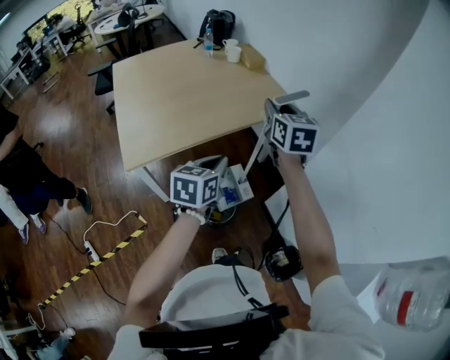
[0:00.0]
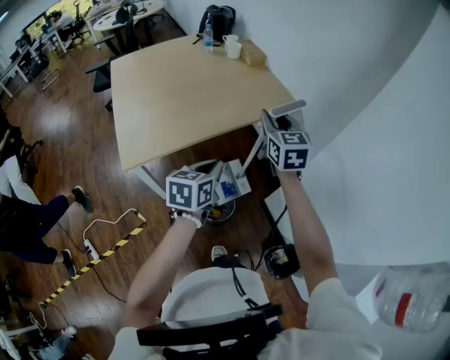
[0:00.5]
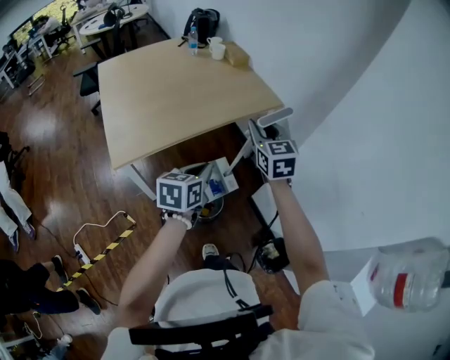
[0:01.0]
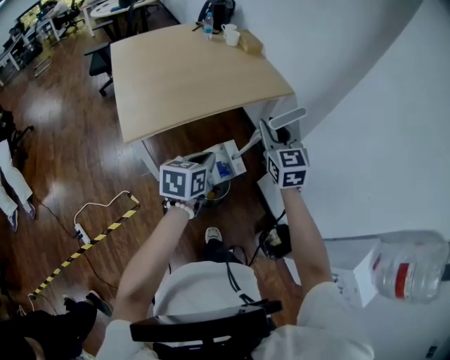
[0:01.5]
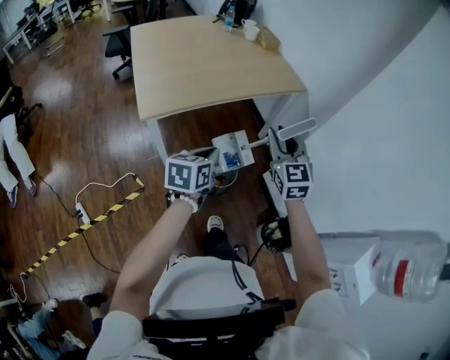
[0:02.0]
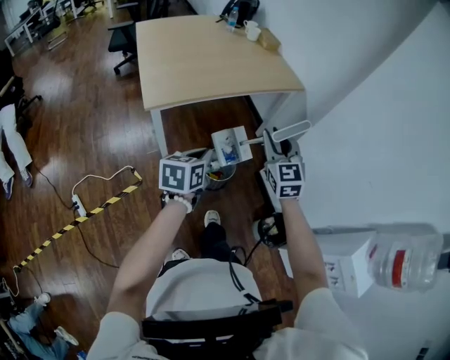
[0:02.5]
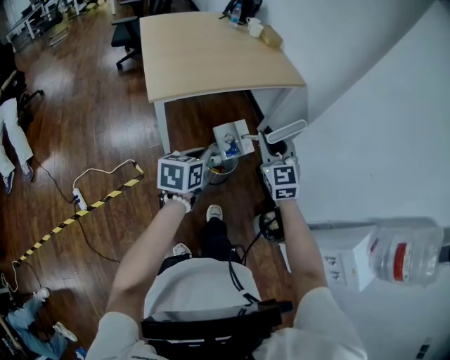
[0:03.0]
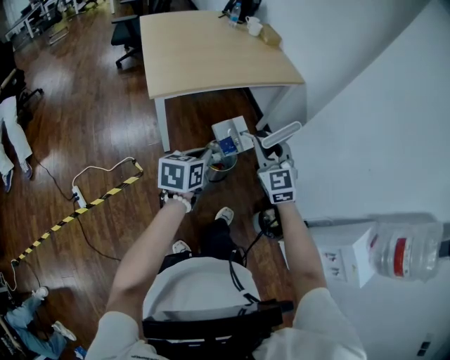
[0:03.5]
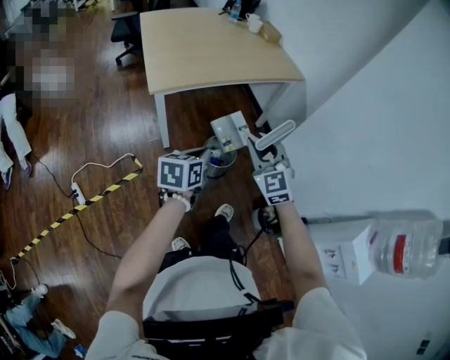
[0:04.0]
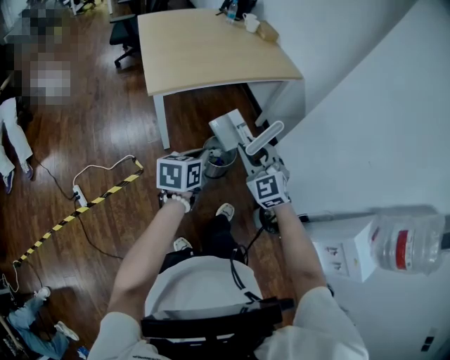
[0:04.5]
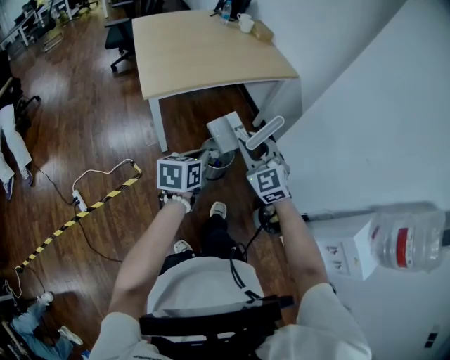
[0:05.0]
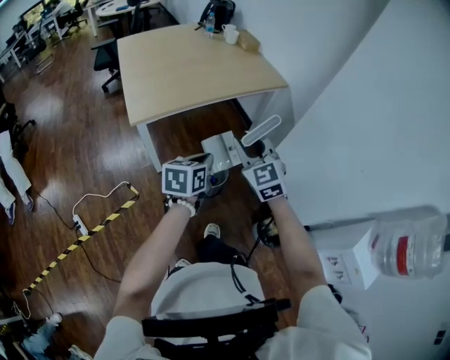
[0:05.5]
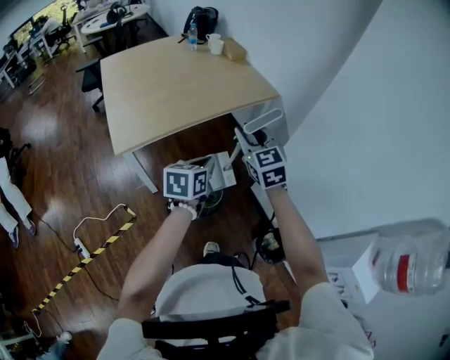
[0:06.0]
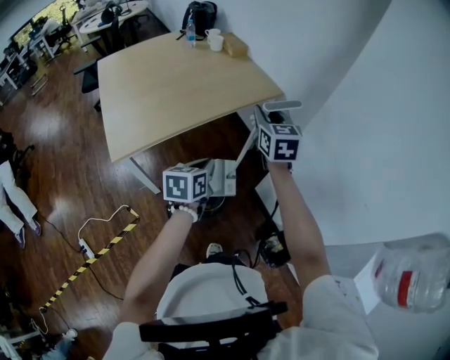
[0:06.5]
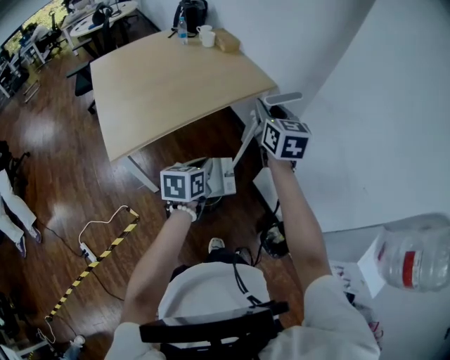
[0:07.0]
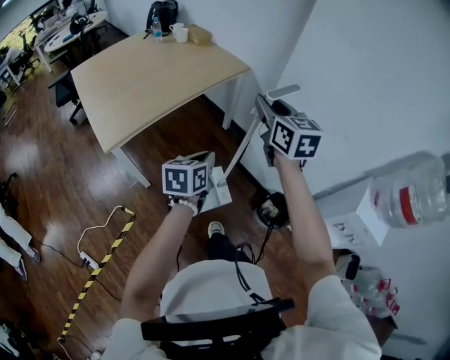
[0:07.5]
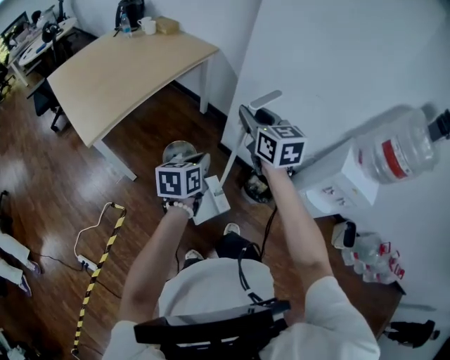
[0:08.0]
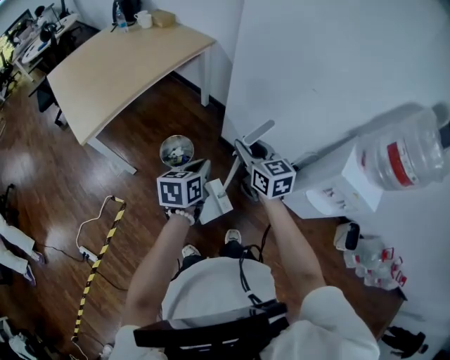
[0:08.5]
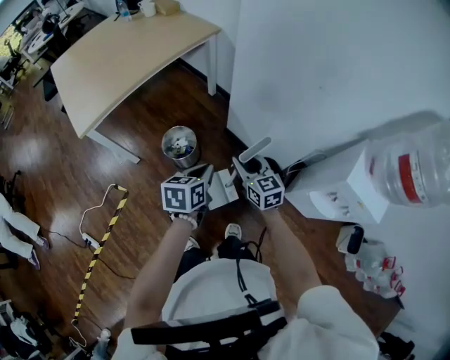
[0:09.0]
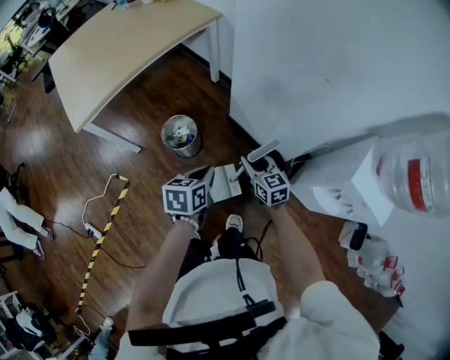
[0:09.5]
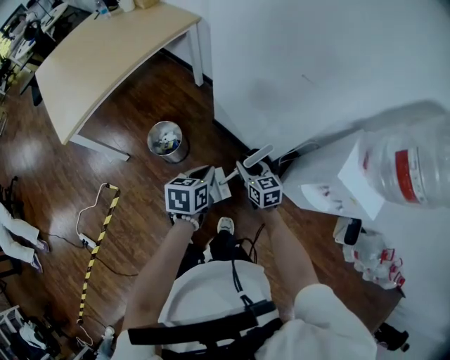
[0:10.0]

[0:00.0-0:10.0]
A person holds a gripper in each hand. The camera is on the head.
0:00.0 to 0:02.0: The left gripper goes about 20 cm backward and to the left; the right gripper goes about 25 cm backward, and rotates roughly 20 degrees.
0:02.0 to 0:04.0: The grippers both shift backward by roughly 15 cm.
0:04.0 to 0:06.0: The left gripper is displaced forward and to the right by approximately 25 cm, while the right gripper moves forward, about 25 cm.
0:06.0 to 0:08.0: The two grippers go roughly 25 cm backward and to the right. The right gripper changes its angle by about 30 degrees.
0:08.0 to 0:10.0: The right gripper shifts some 40 cm downward and to the right; the left gripper travels to the right and downward by some 25 cm.

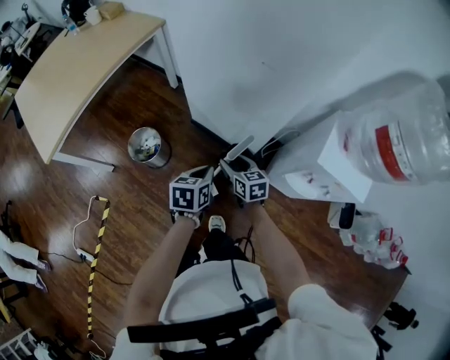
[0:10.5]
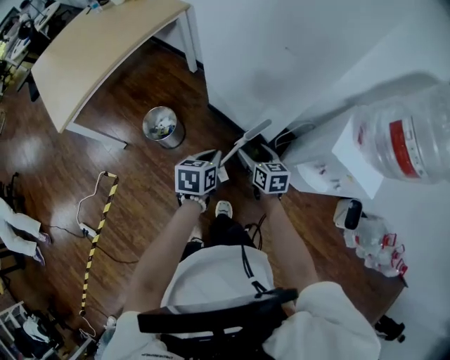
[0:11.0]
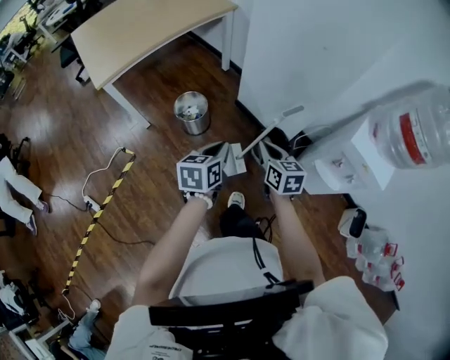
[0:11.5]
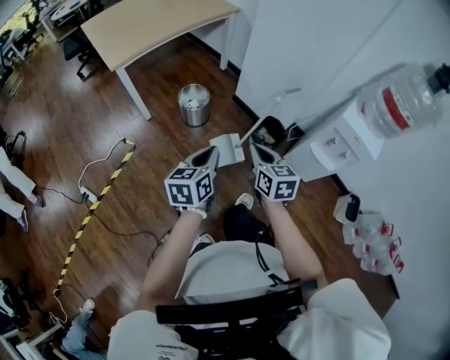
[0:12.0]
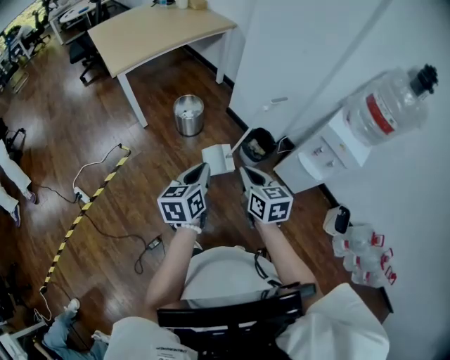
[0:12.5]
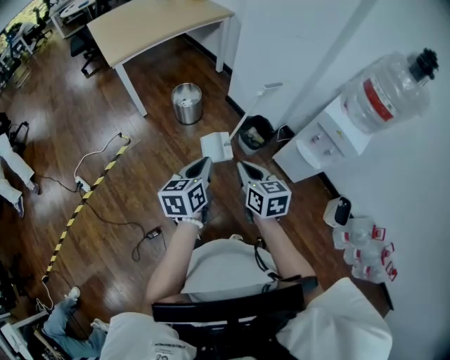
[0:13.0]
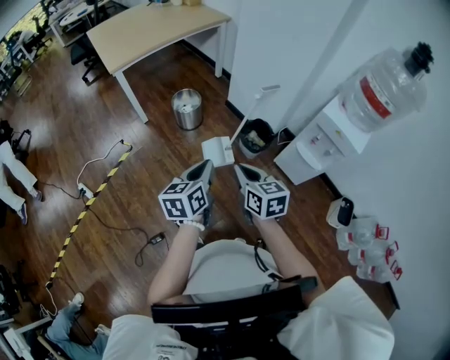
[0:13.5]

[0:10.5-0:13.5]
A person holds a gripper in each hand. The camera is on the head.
0:10.5 to 0:12.0: The left gripper shifts approximately 40 cm backward and to the left, and turns by about 30 degrees. Meanwhile the right gripper moves backward, upward and to the left, roughly 40 cm, and closes.
0:12.0 to 0:13.5: Both grippers travel together backward and to the right, approximately 15 cm.

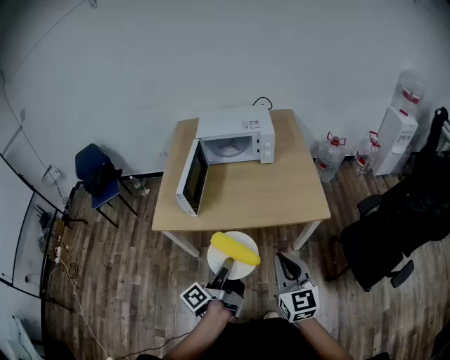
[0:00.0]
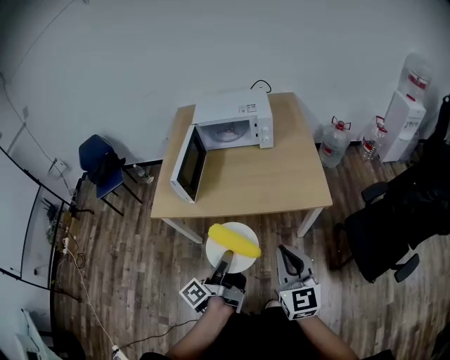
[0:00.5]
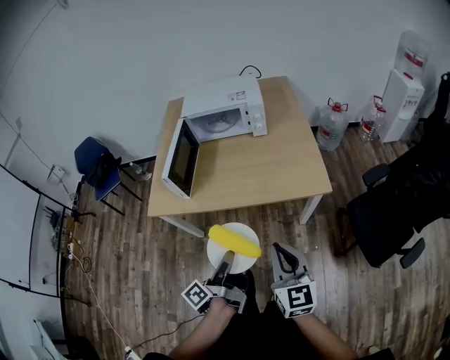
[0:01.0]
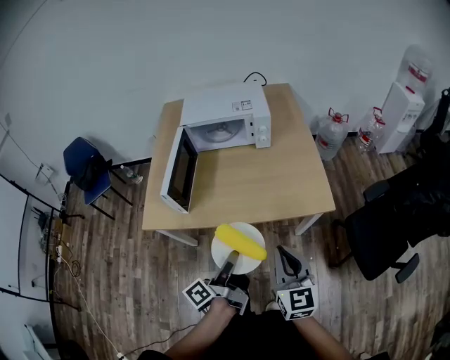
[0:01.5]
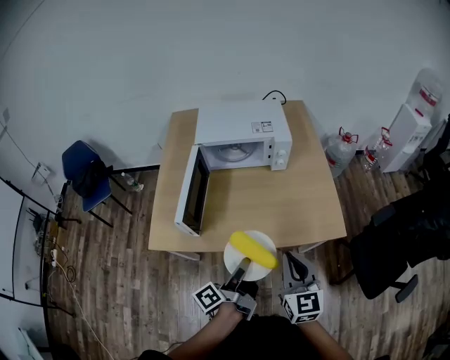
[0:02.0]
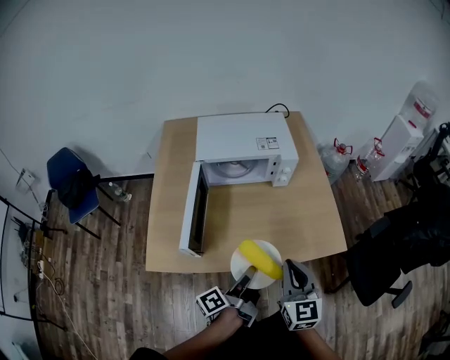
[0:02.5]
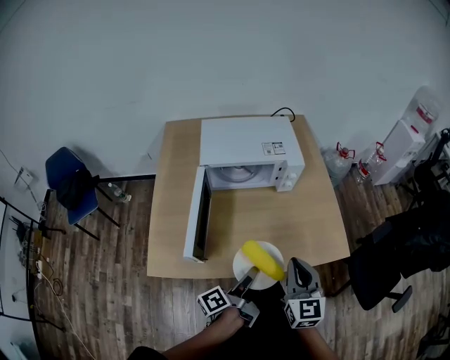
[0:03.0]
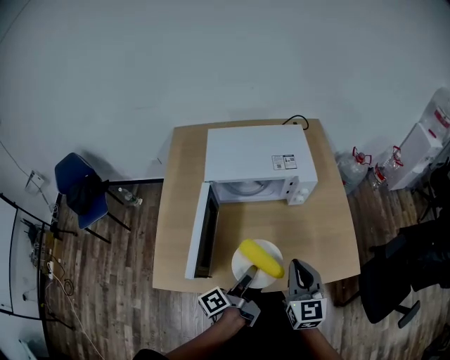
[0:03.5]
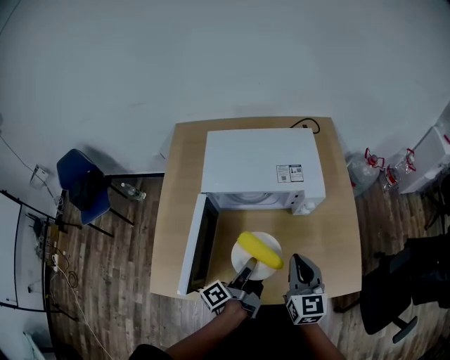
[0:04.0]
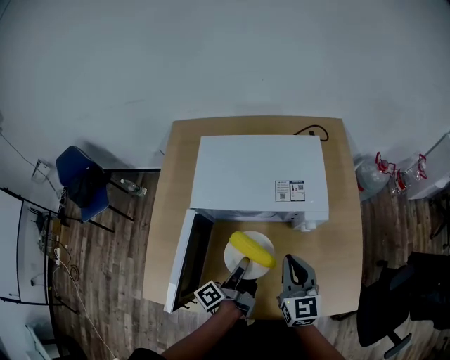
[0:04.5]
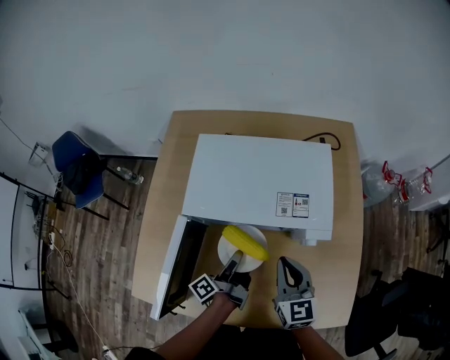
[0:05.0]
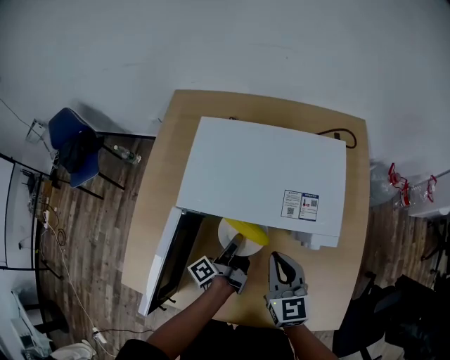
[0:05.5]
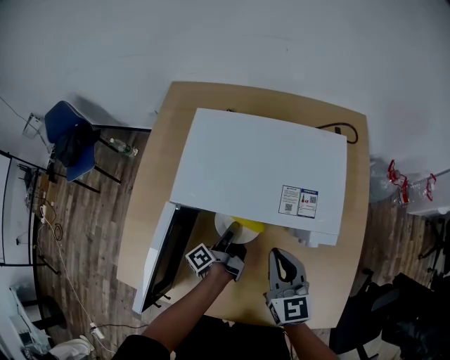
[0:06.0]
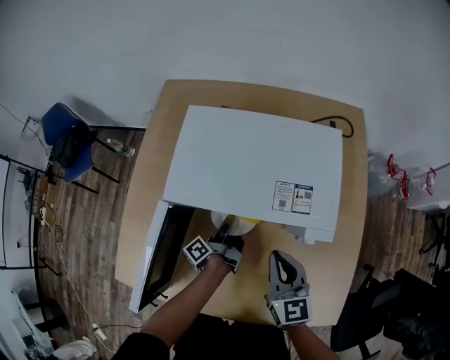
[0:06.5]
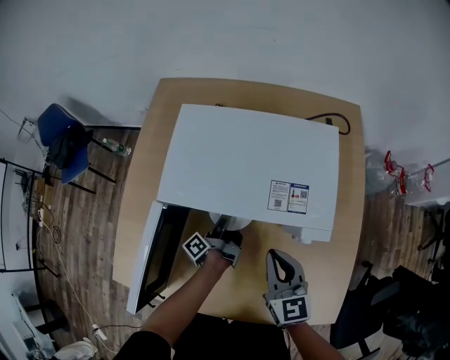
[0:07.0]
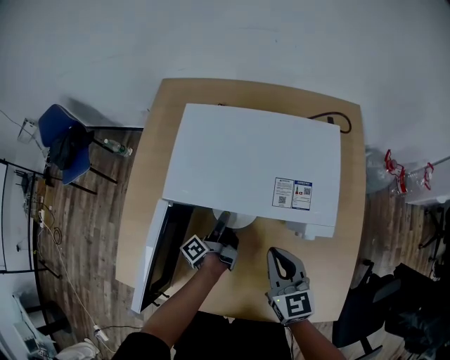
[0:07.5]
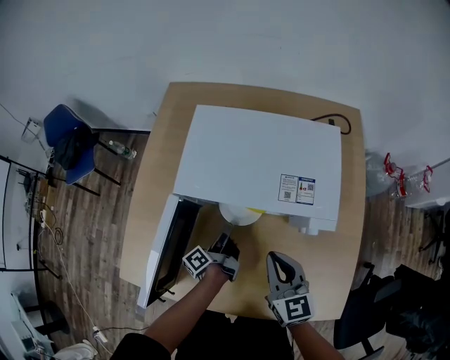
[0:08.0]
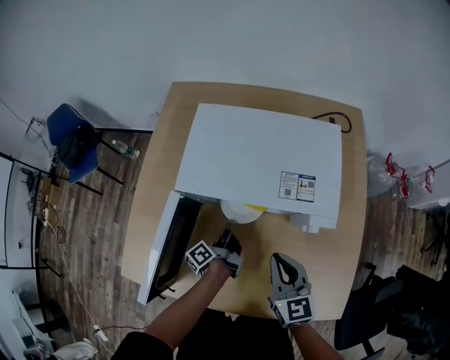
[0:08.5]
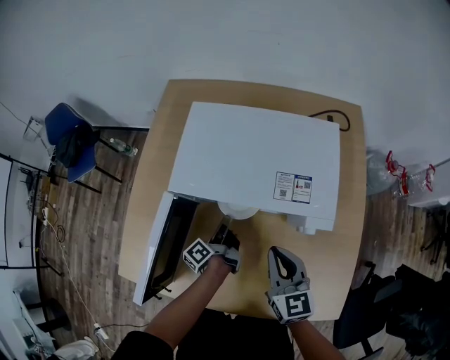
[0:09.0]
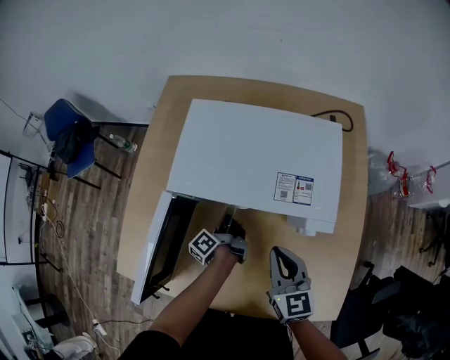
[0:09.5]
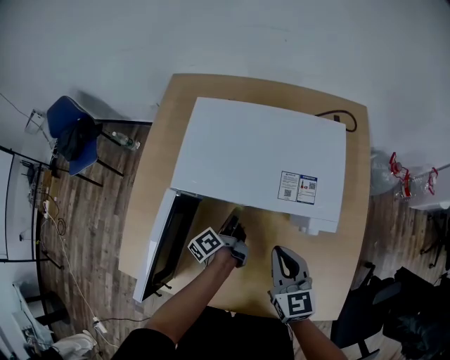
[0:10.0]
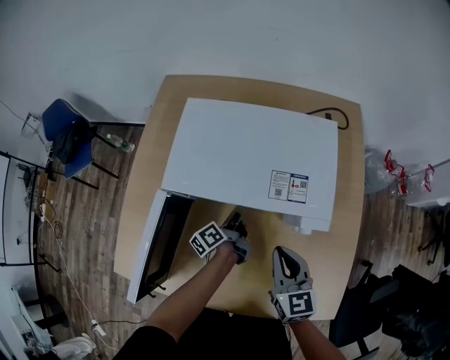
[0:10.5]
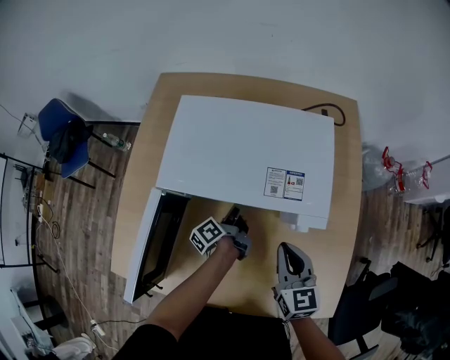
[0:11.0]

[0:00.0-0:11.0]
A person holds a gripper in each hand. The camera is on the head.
0:00.0 to 0:02.0: The right gripper ends up about 15 cm from where it was.
0:02.0 to 0:03.5: The right gripper changes place by roughly 15 cm.
0:03.5 to 0:05.5: The right gripper moves roughly 25 cm, and swivels roughly 20 degrees.
0:09.0 to 0:11.0: The right gripper moves about 5 cm.

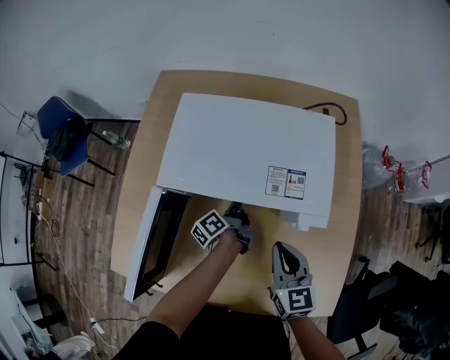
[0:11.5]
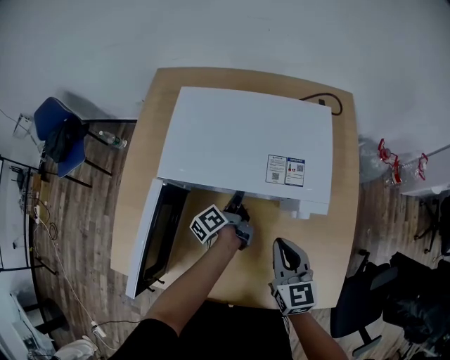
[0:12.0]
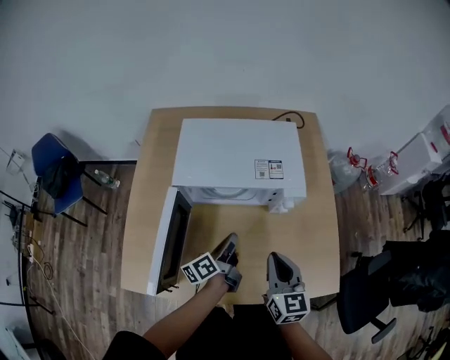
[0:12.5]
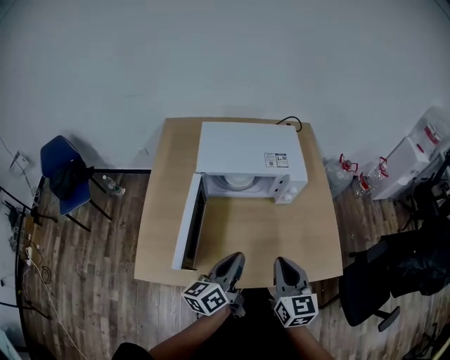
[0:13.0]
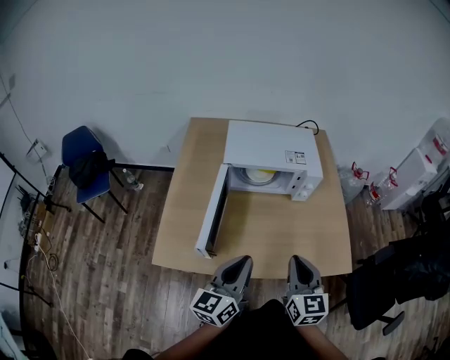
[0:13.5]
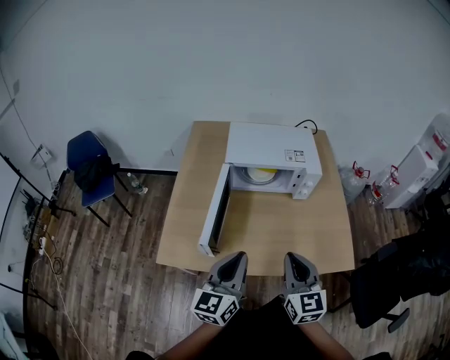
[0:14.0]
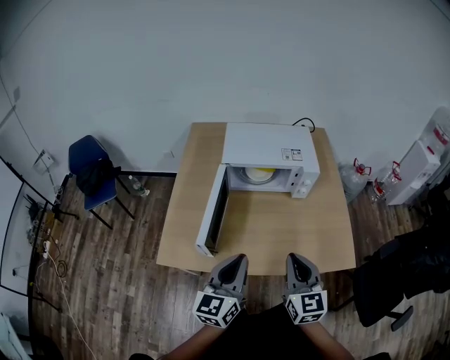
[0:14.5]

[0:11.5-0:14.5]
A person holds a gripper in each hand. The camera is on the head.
0:11.5 to 0:13.0: The right gripper shifts by about 25 cm.
0:13.0 to 0:14.5: The right gripper changes place by about 10 cm.
